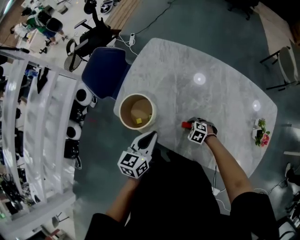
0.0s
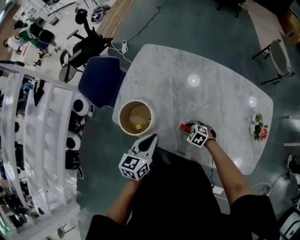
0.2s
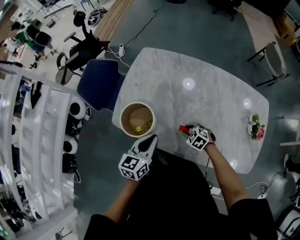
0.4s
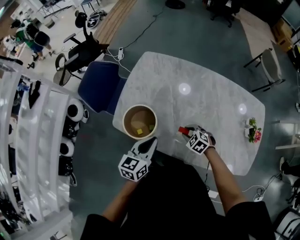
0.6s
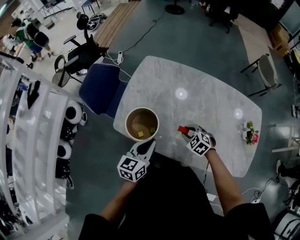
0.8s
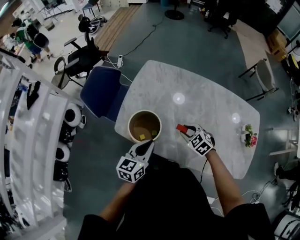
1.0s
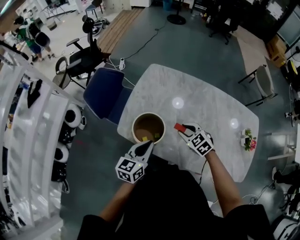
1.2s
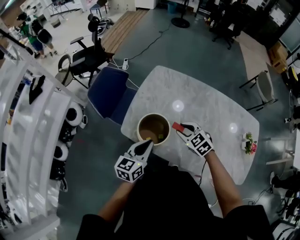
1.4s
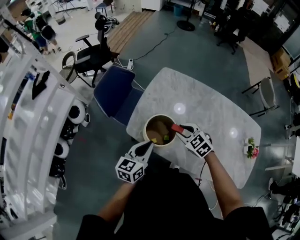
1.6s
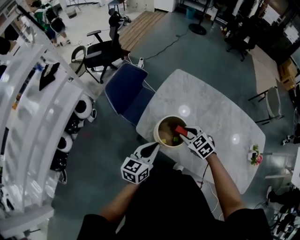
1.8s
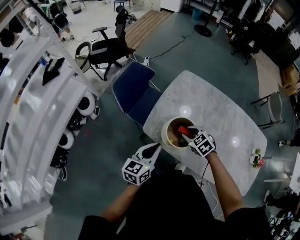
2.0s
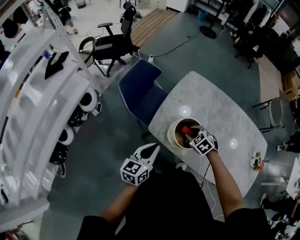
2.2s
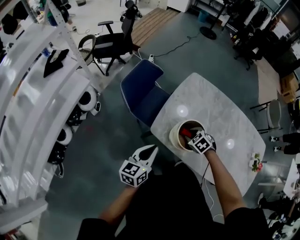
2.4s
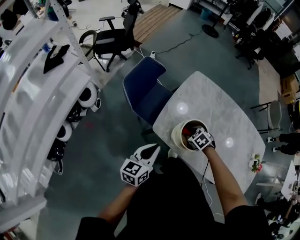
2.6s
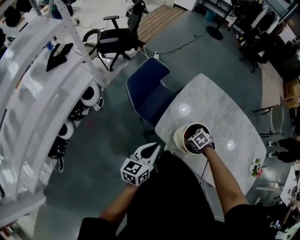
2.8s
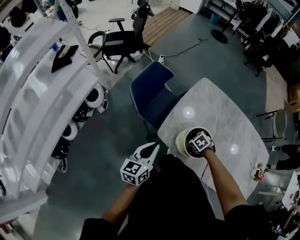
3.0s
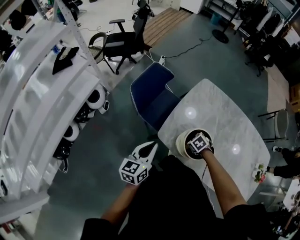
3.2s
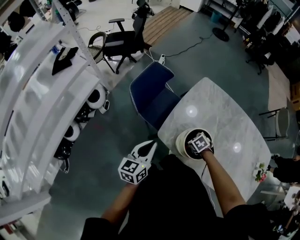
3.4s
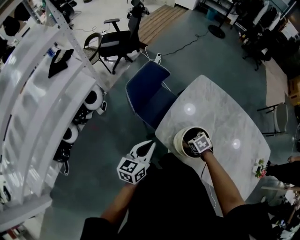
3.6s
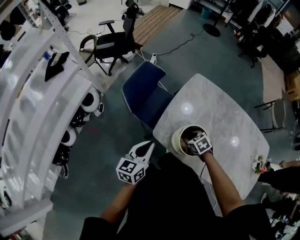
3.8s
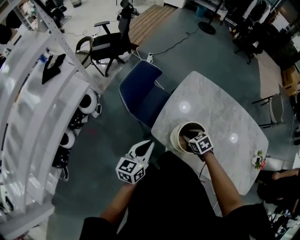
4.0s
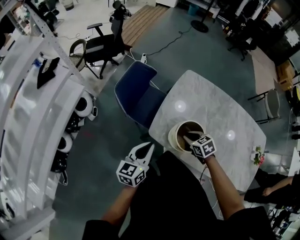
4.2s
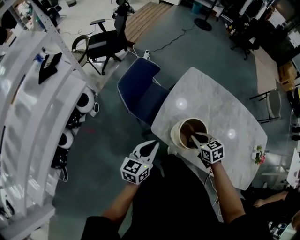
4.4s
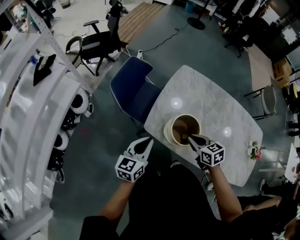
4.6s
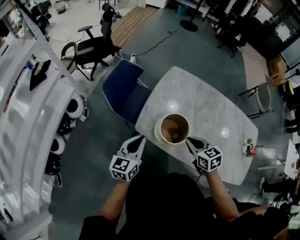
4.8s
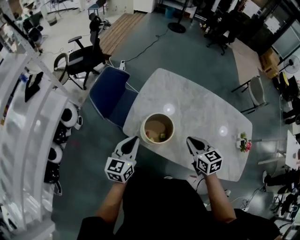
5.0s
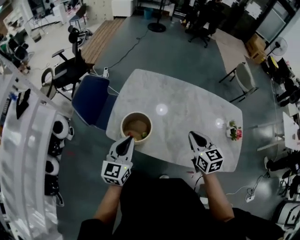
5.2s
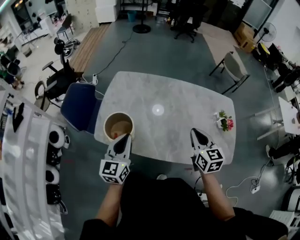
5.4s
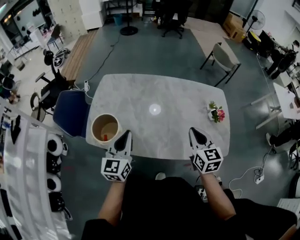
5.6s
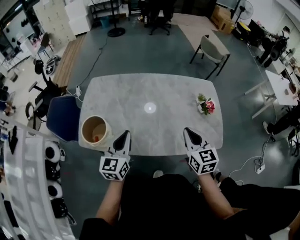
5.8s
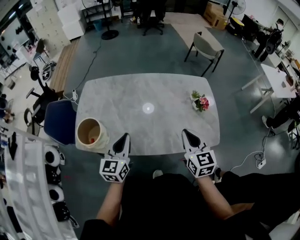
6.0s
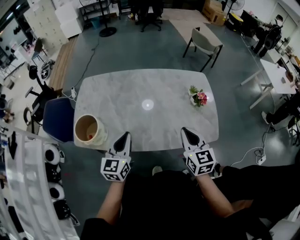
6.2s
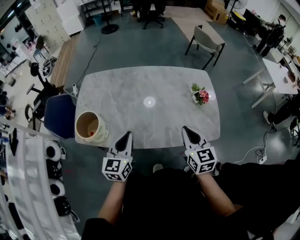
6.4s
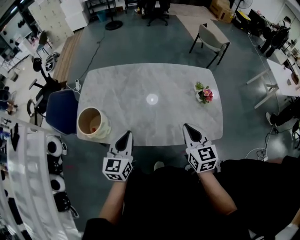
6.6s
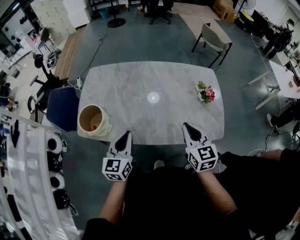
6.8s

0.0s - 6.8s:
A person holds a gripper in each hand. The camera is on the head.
0.0s - 1.4s: The right gripper heads upward and to the left, covering approximately 30 cm, and swivels some 30 degrees. The left gripper heads to the left, covering about 10 cm.
1.4s - 2.8s: The right gripper changes place by approximately 20 cm, and changes its angle by about 30 degrees. The left gripper moves some 20 cm.
2.8s - 4.0s: There are only small adjustments of the grippers.
4.0s - 5.4s: The left gripper moves some 30 cm, and turns by approximately 20 degrees, while the right gripper changes place by some 50 cm, angles its fingers upward, by approximately 40 degrees, and closes up.
5.4s - 6.8s: The left gripper shifts approximately 20 cm to the right, while the right gripper travels to the right and backward by roughly 20 cm.

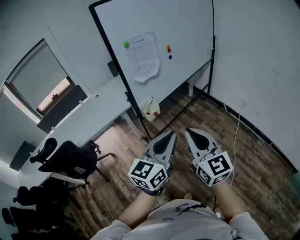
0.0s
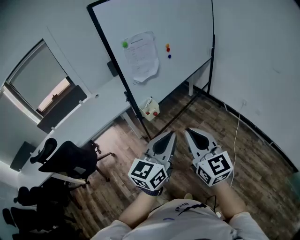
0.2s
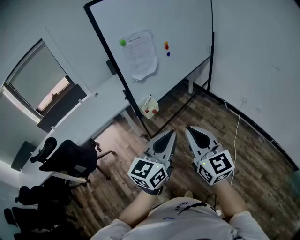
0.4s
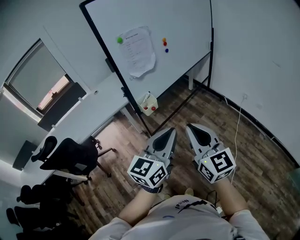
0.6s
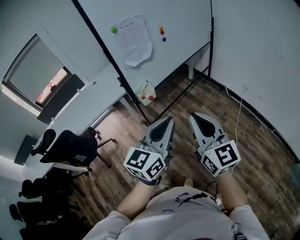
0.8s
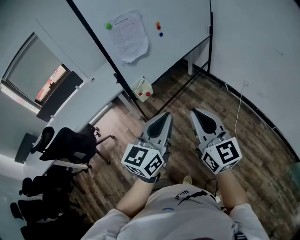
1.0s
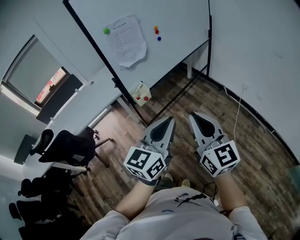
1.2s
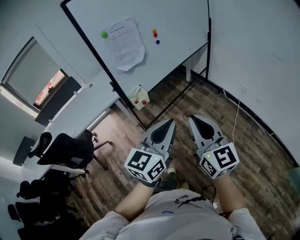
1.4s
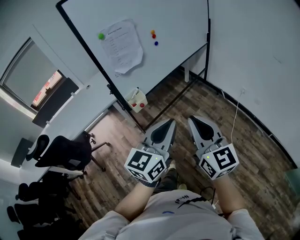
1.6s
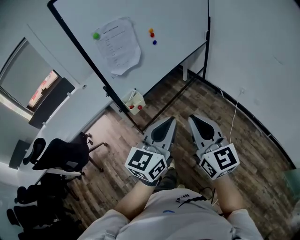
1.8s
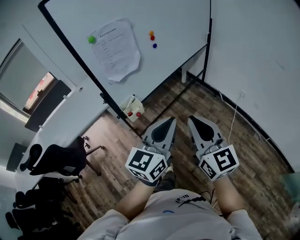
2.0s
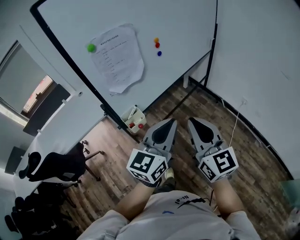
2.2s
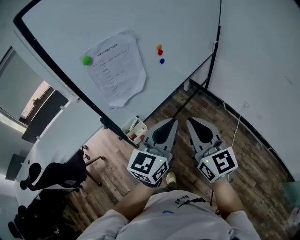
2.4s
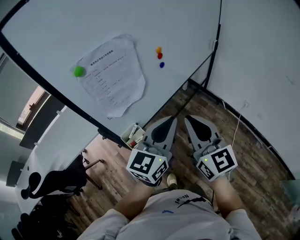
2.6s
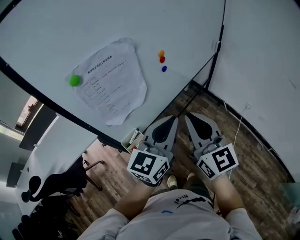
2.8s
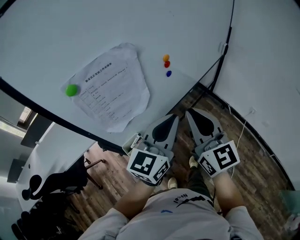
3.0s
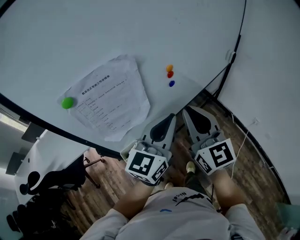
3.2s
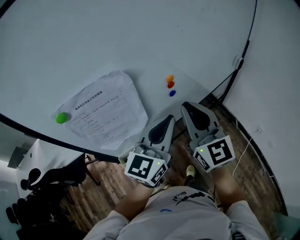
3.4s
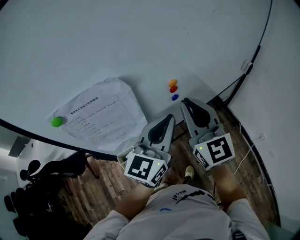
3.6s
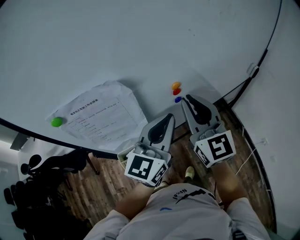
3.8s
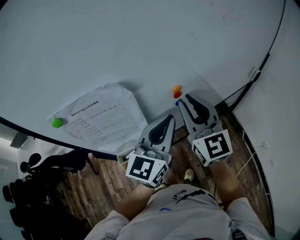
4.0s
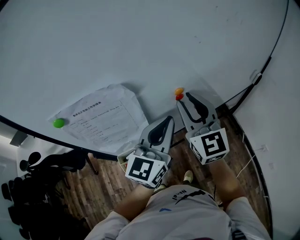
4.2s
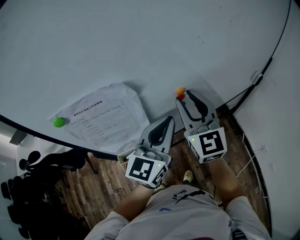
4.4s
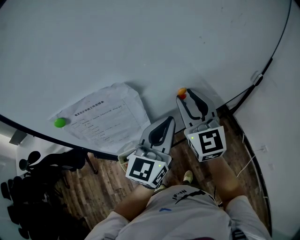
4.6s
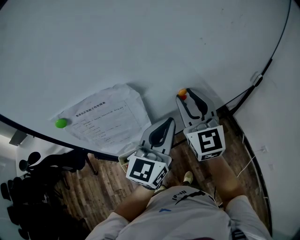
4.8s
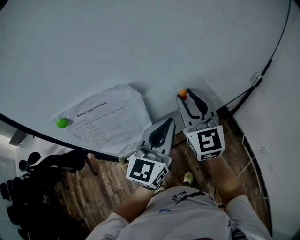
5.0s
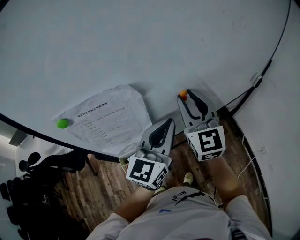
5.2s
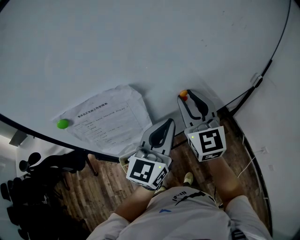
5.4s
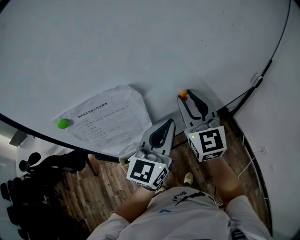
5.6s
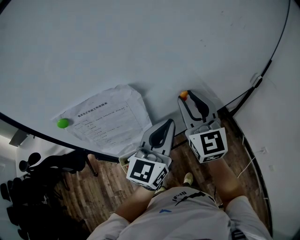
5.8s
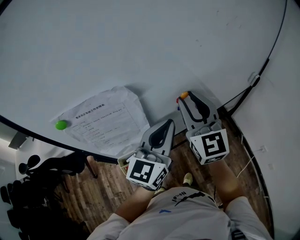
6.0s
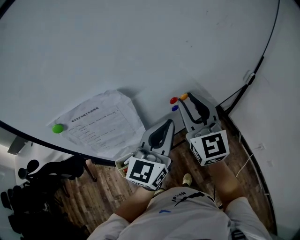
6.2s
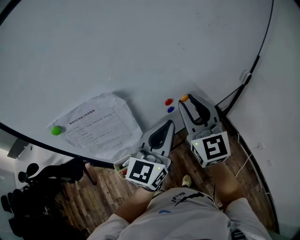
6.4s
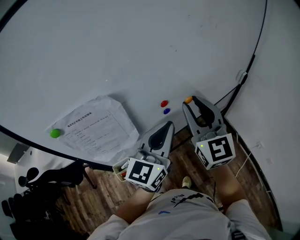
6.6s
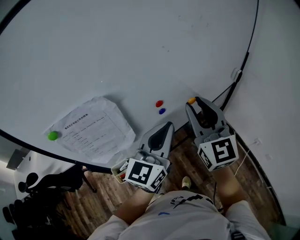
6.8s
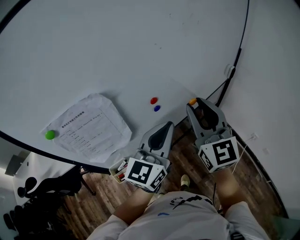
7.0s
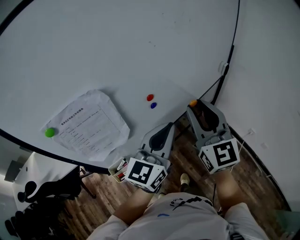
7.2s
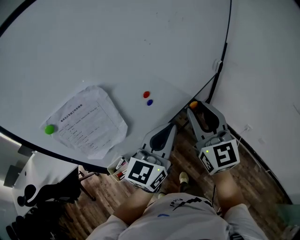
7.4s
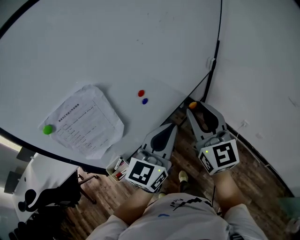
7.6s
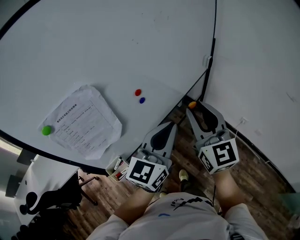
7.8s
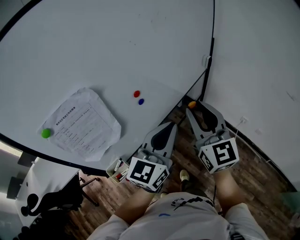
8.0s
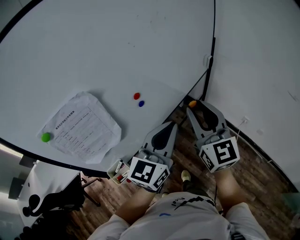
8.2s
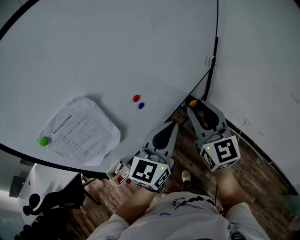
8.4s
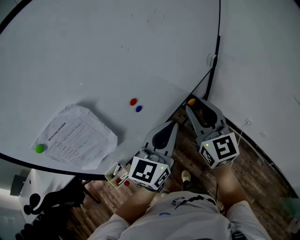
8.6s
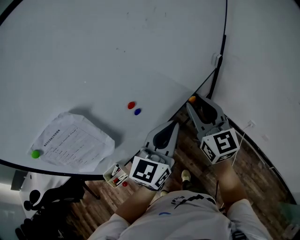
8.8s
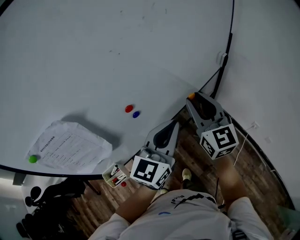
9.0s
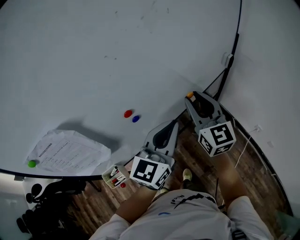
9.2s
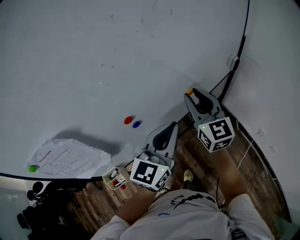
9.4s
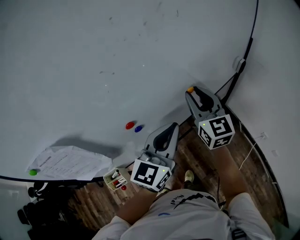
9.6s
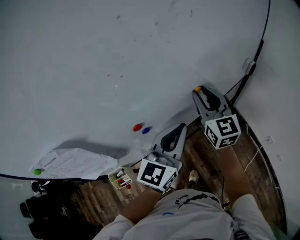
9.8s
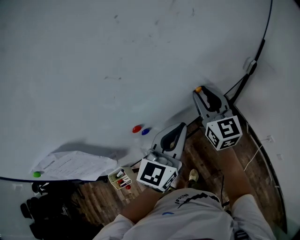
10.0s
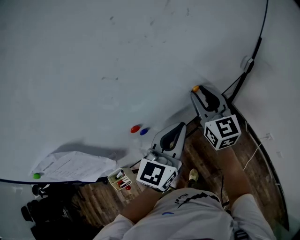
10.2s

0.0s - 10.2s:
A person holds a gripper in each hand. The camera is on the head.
0.0s - 1.4s: Both grippers move to the right, some 10 cm.
1.4s - 3.0s: Both grippers are carried forward, approximately 40 cm.
3.0s - 4.4s: The two grippers go roughly 15 cm forward. The left gripper swivels approximately 20 degrees, while the right gripper opens up.
4.4s - 5.8s: Neither gripper changes place.
5.8s - 7.2s: The right gripper shifts about 15 cm to the right and backward, while the left gripper travels to the right by some 10 cm.
7.2s - 8.8s: The right gripper heads forward, to the right and downward, covering roughly 10 cm, while the left gripper goes approximately 10 cm to the right and forward.
8.8s - 10.2s: The left gripper heads forward, covering roughly 10 cm. The right gripper is displaced forward and downward by some 20 cm.

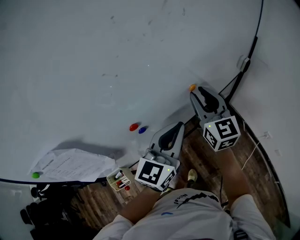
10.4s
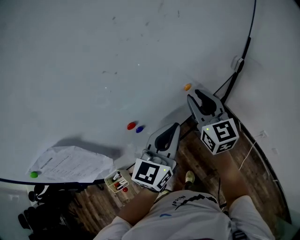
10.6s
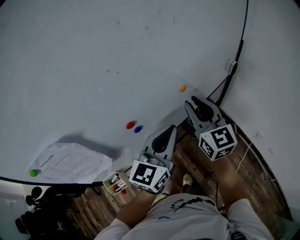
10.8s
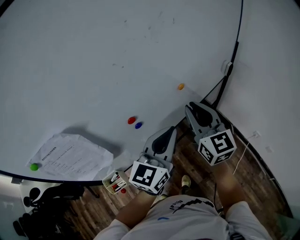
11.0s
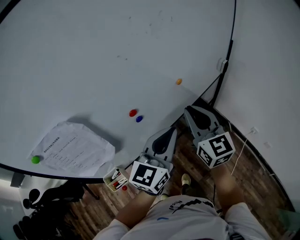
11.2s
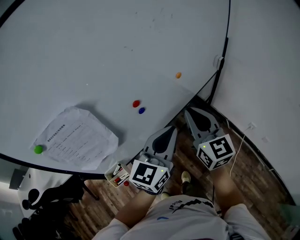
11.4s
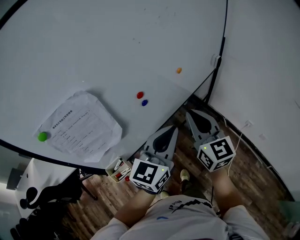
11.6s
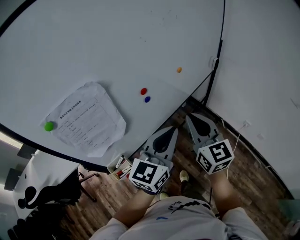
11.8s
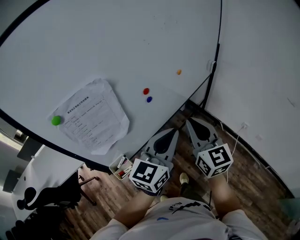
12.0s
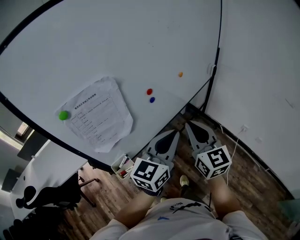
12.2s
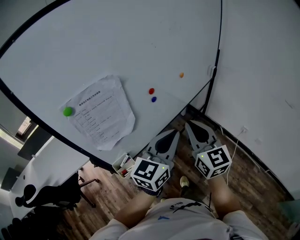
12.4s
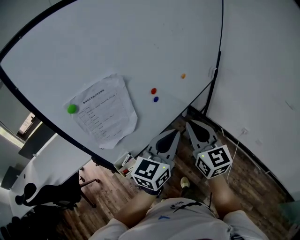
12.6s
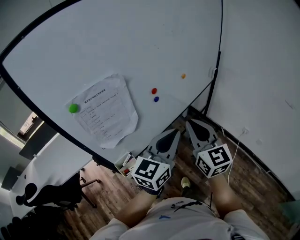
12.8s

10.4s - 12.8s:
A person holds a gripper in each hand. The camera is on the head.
10.4s - 11.6s: Both grippers move backward, approximately 20 cm. The right gripper closes.
11.6s - 12.8s: Both grippers travel together backward, some 10 cm.

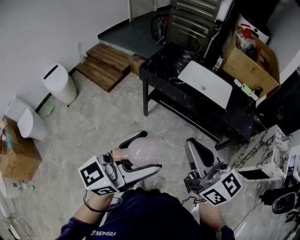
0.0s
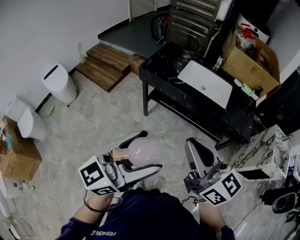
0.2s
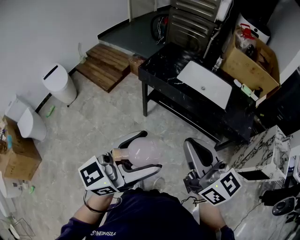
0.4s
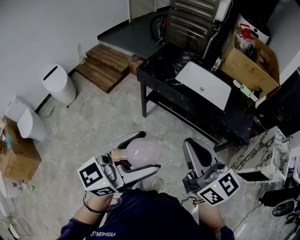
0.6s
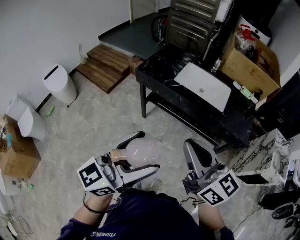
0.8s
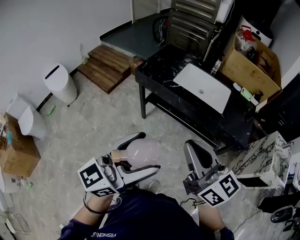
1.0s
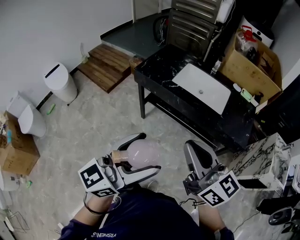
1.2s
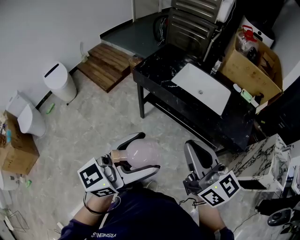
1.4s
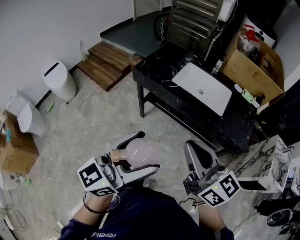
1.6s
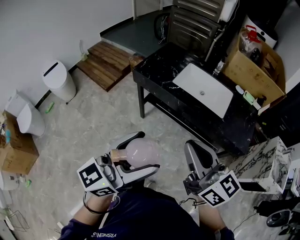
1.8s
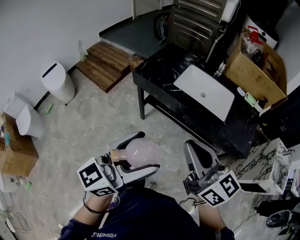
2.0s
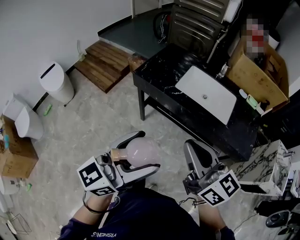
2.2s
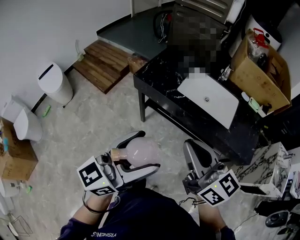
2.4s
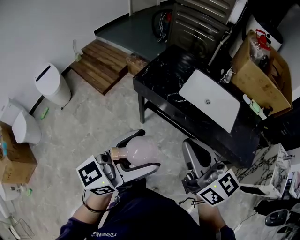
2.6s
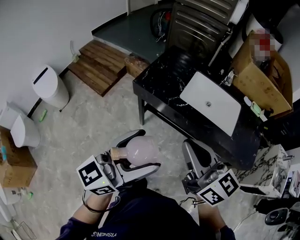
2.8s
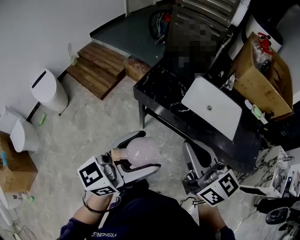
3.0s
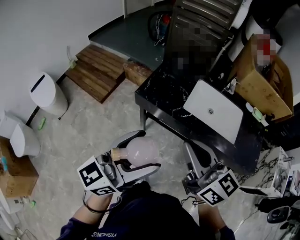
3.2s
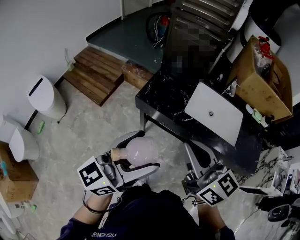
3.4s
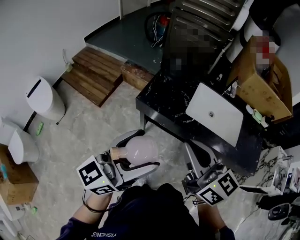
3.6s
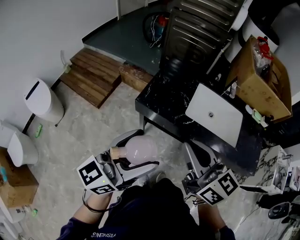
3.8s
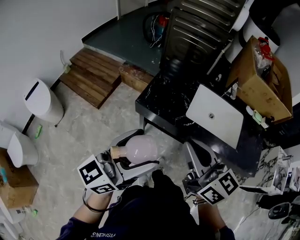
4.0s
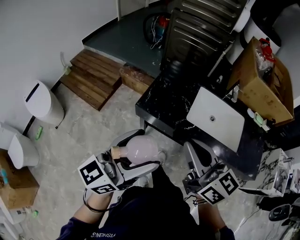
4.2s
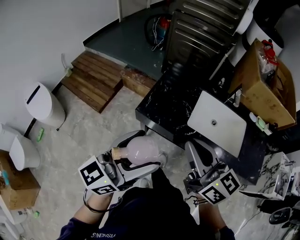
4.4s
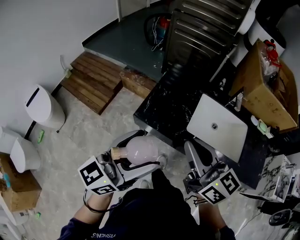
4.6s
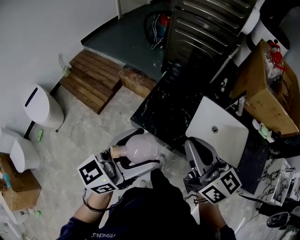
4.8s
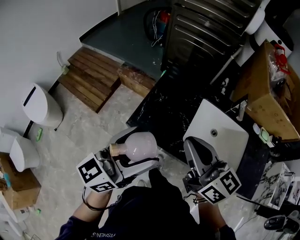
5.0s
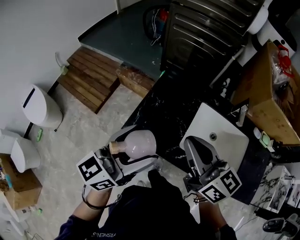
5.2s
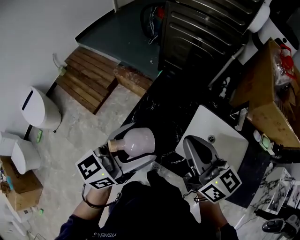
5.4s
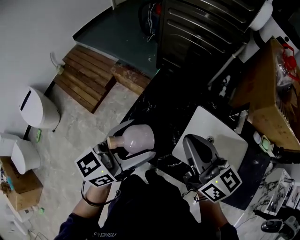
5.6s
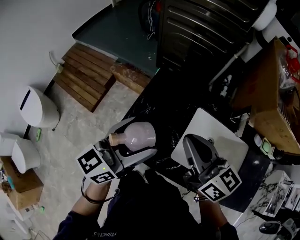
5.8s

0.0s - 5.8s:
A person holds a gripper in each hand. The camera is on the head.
0.0s - 1.4s: The left gripper heads to the right, covering some 5 cm; the right gripper heads to the right and forward, covering approximately 10 cm.
1.4s - 2.8s: The two grippers go about 20 cm forward and to the left.
2.8s - 4.4s: Both grippers travel together forward and to the left, about 20 cm.
4.4s - 5.8s: The grippers both shift forward by roughly 25 cm.
